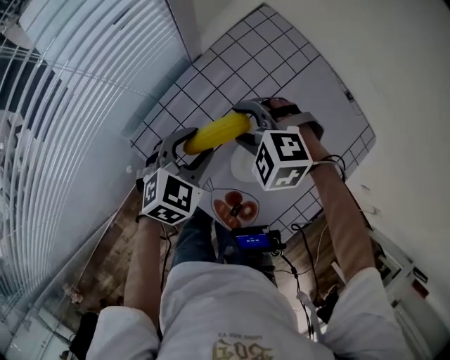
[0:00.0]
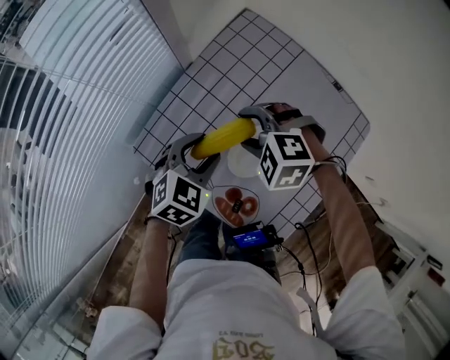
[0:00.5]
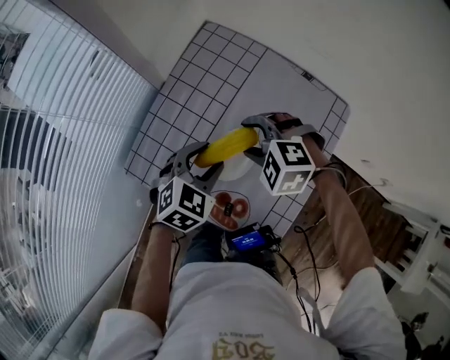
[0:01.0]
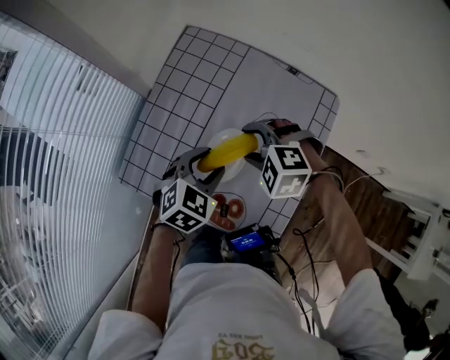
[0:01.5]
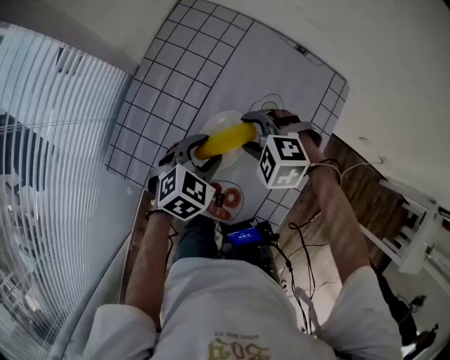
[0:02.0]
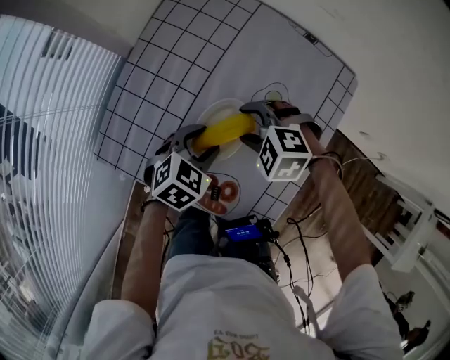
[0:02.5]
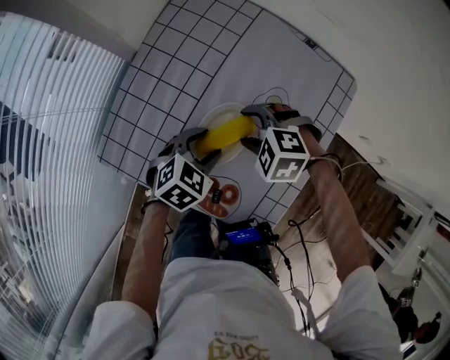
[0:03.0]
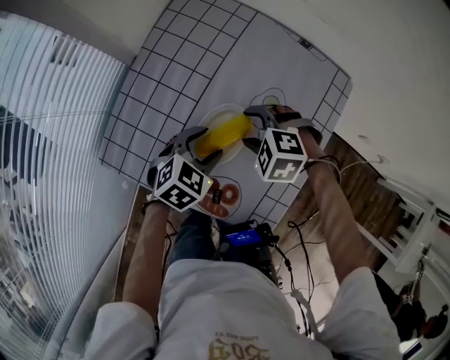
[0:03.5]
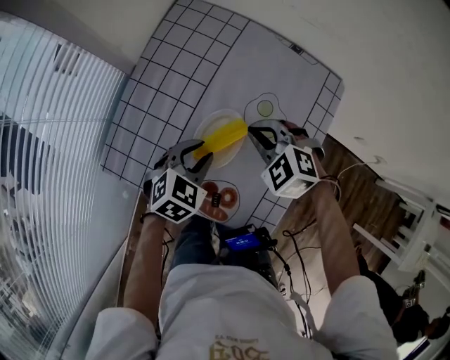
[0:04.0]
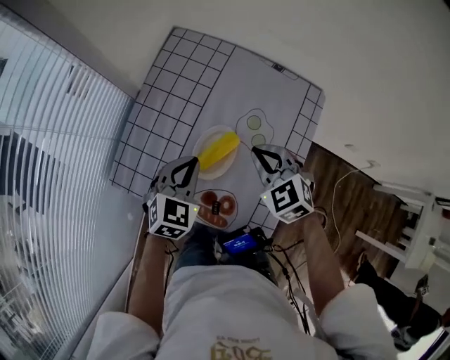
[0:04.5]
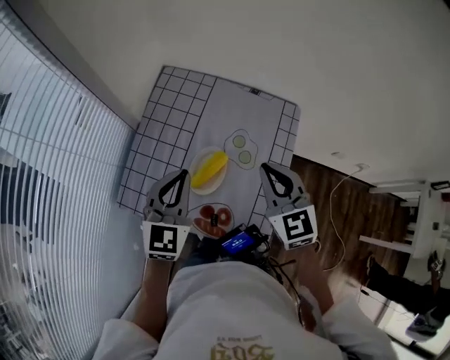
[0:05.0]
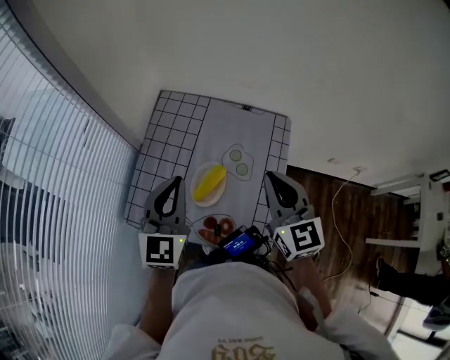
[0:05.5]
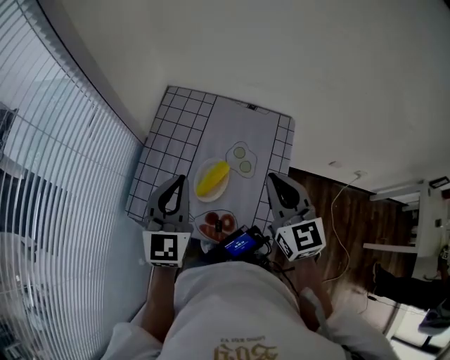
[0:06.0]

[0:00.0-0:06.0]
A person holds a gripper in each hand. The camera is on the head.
0:00.0 to 0:02.0: Both grippers move to the right and backward, roughly 15 cm. The left gripper swivels some 20 degrees; the right gripper rotates approximately 20 degrees.
0:02.0 to 0:04.0: The right gripper closes.
0:04.0 to 0:06.0: The two grippers go roughly 25 cm upward. The left gripper points its fingers about 40 degrees further upward, and closes its fingers; the right gripper tilts its fingers some 40 degrees upward.

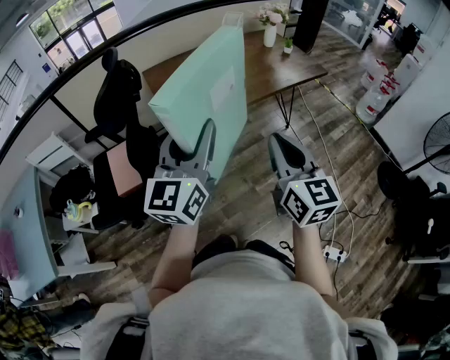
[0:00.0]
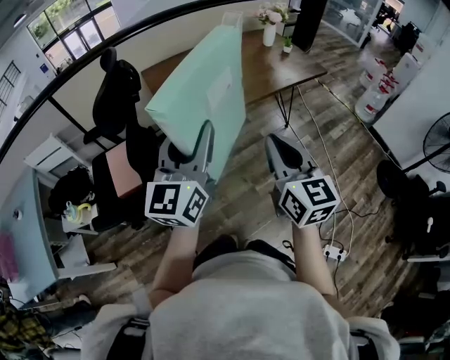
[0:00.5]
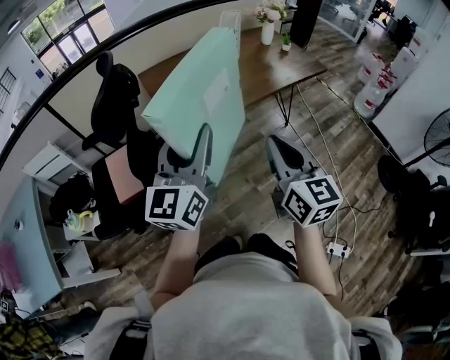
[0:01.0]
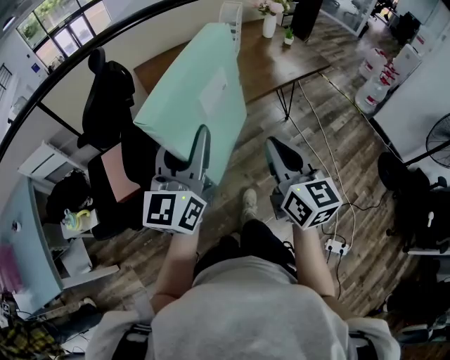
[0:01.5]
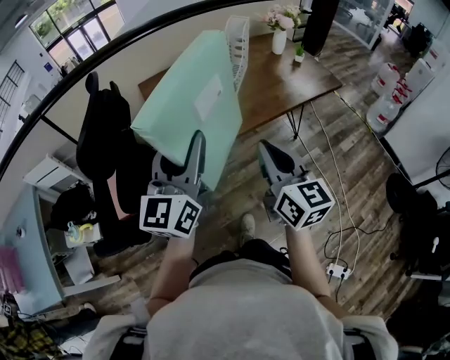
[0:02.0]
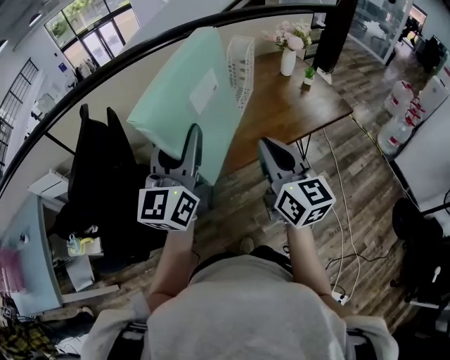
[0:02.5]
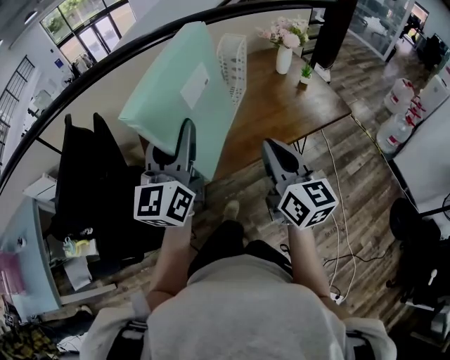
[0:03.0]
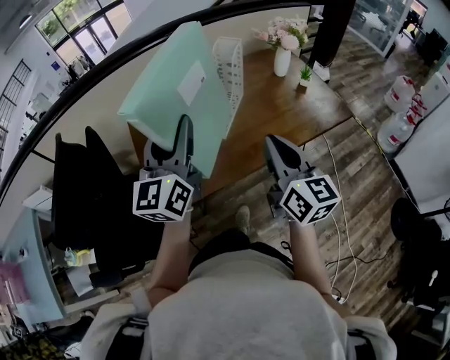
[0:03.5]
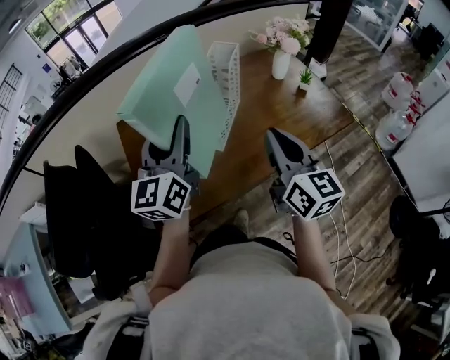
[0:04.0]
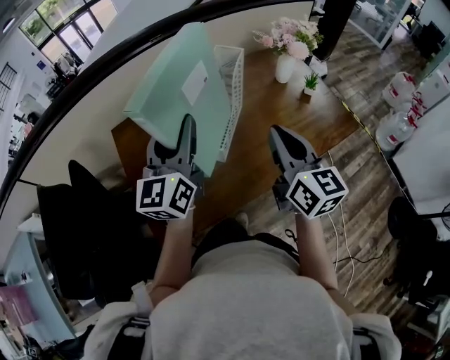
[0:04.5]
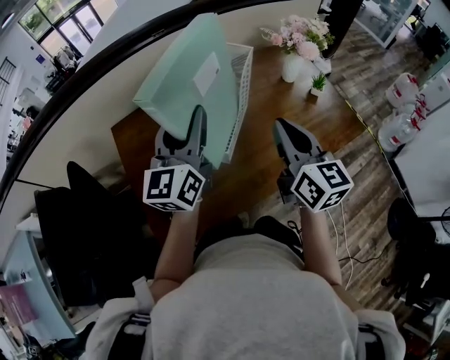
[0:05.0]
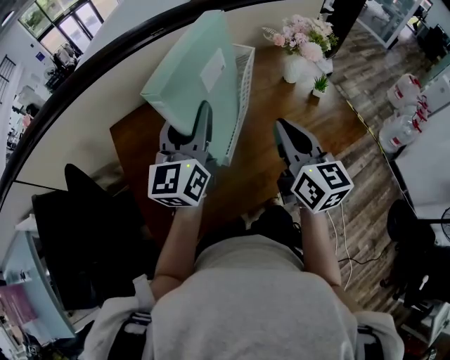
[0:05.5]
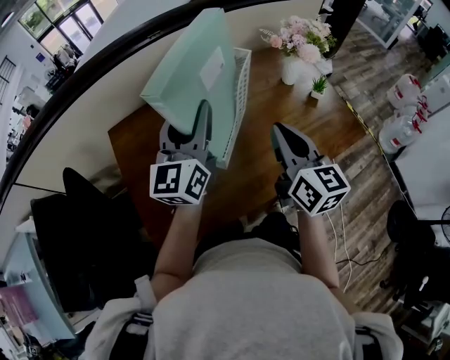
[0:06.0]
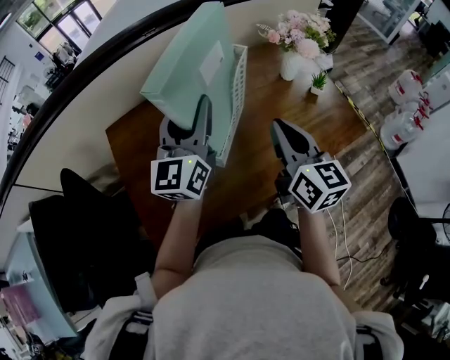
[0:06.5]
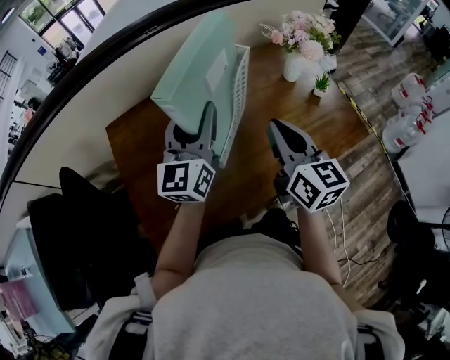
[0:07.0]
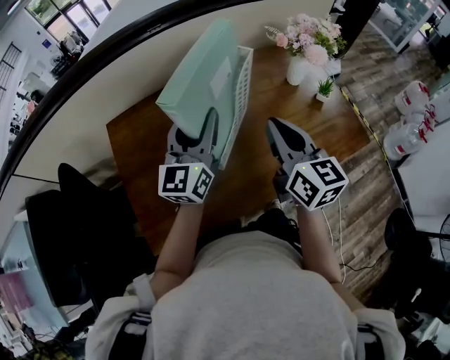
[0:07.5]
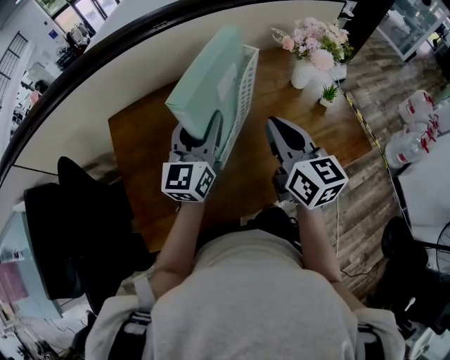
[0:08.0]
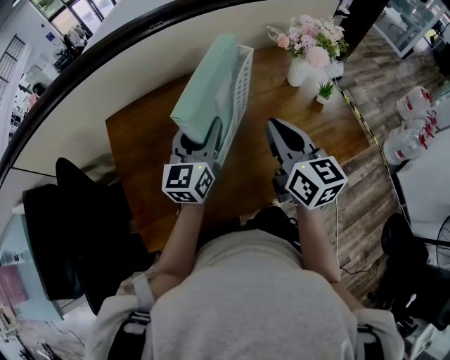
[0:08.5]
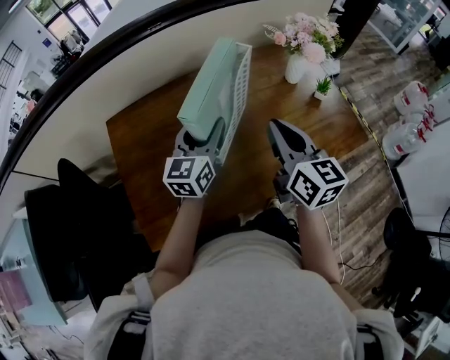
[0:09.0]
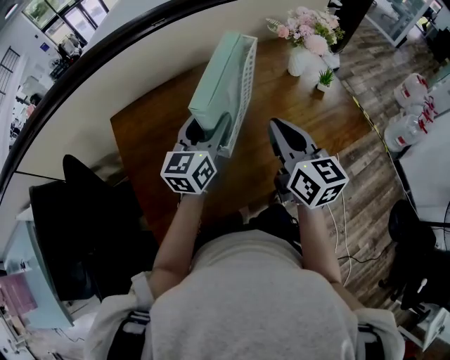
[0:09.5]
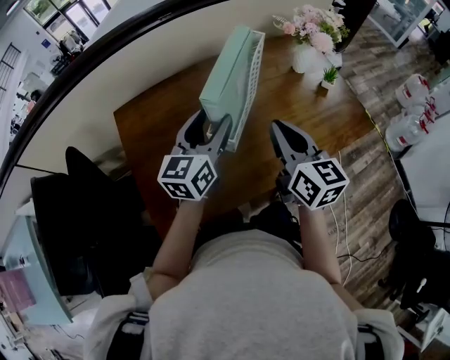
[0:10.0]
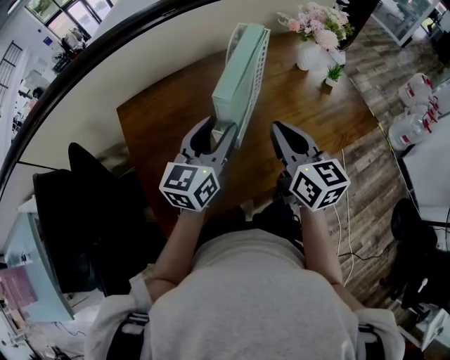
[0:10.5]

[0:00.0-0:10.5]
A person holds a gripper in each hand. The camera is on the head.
0:00.0 to 0:02.0: The grippers both shift forward by about 15 cm.
0:02.0 to 0:04.0: The left gripper is displaced forward by roughly 30 cm. The right gripper moves forward and to the right, roughly 30 cm.
0:04.0 to 0:06.5: Both grippers travel together forward, about 15 cm.
0:06.5 to 0:08.5: The left gripper shifts about 10 cm downward.
0:08.5 to 0:10.5: Both grippers travel together backward, roughly 5 cm.

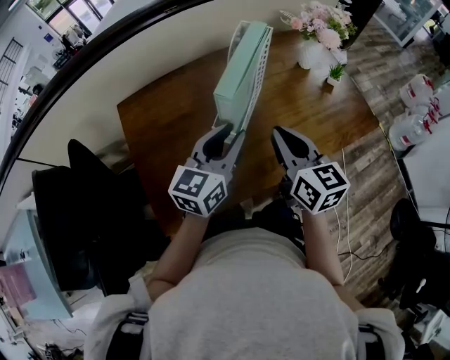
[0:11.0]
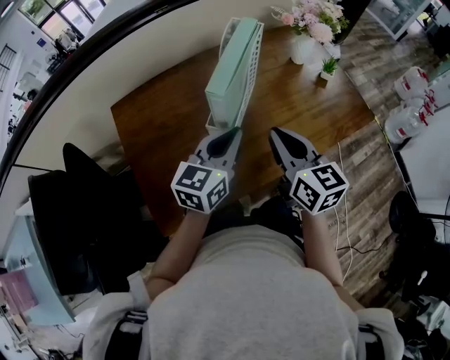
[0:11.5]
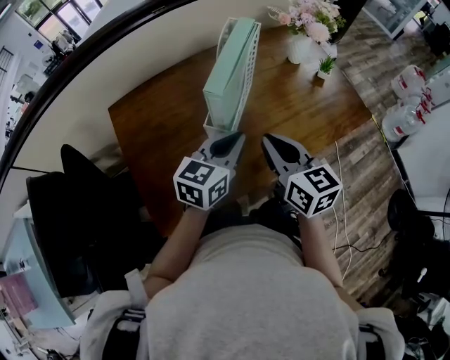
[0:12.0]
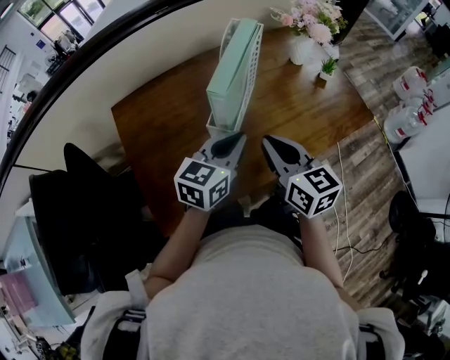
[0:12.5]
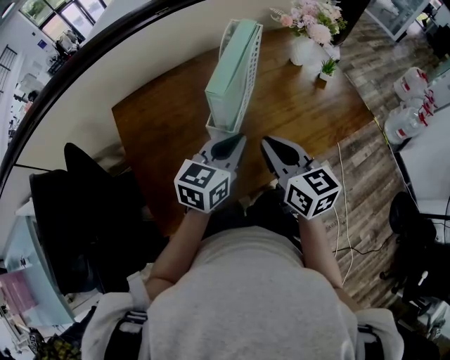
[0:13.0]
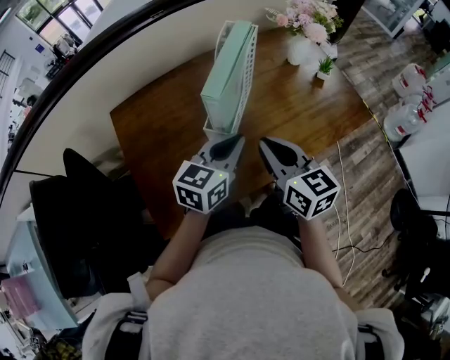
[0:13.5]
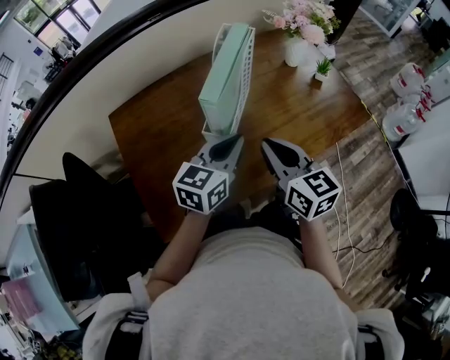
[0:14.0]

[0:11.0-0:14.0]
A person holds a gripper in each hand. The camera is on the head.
0:11.0 to 0:12.5: The left gripper closes its fingers.
0:12.5 to 0:14.0: Both grippers stay put.

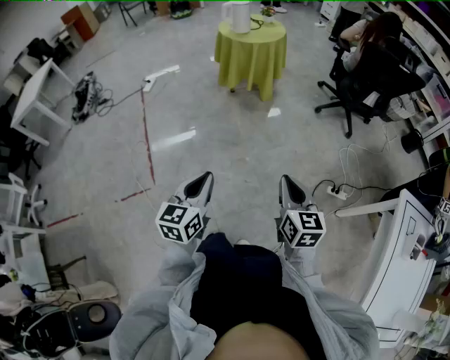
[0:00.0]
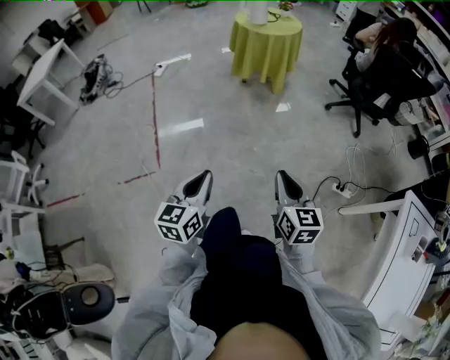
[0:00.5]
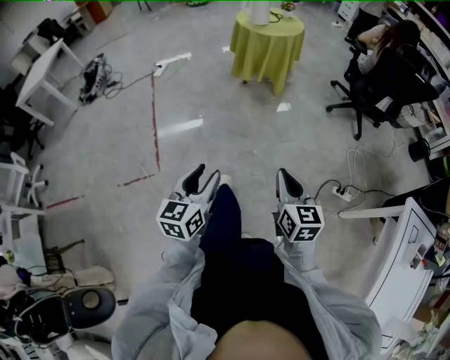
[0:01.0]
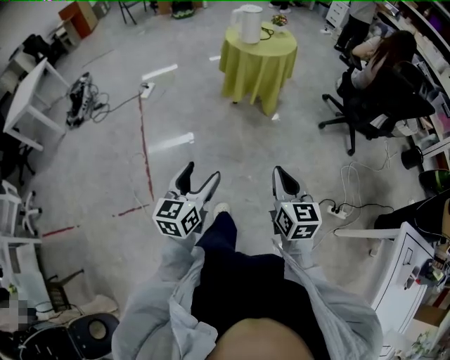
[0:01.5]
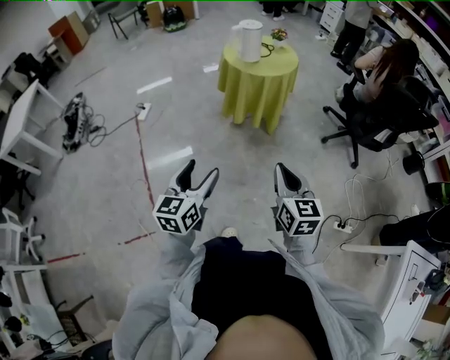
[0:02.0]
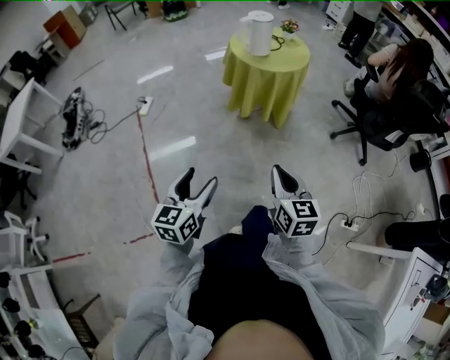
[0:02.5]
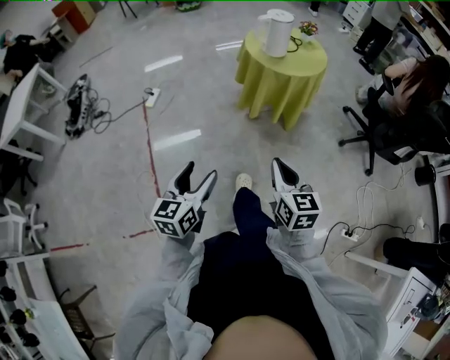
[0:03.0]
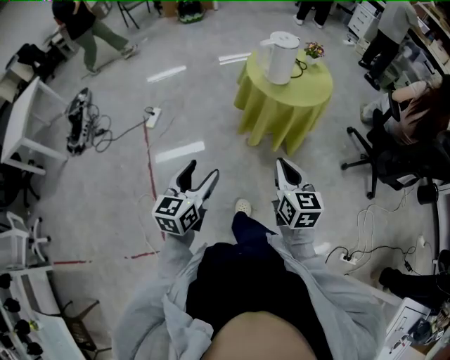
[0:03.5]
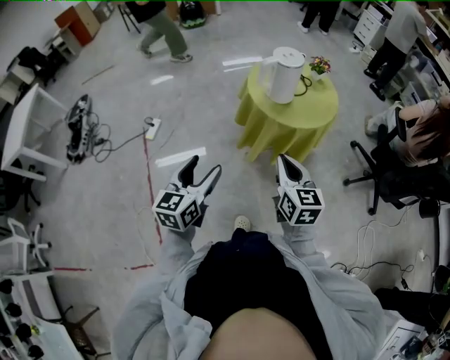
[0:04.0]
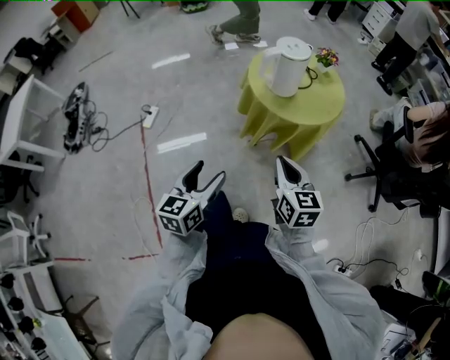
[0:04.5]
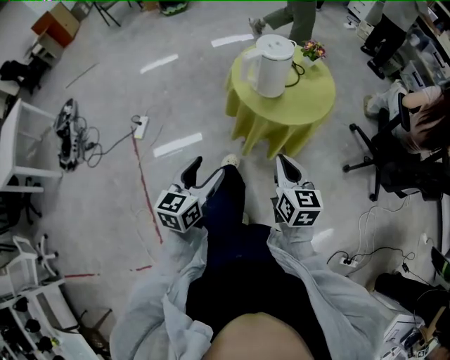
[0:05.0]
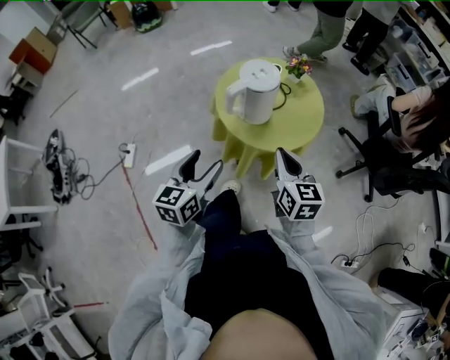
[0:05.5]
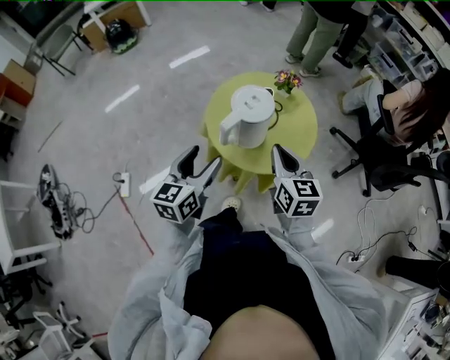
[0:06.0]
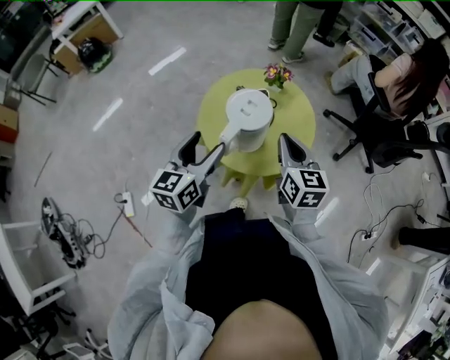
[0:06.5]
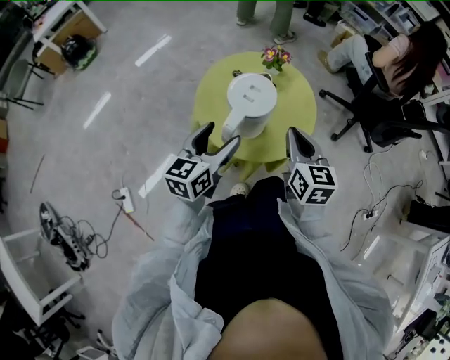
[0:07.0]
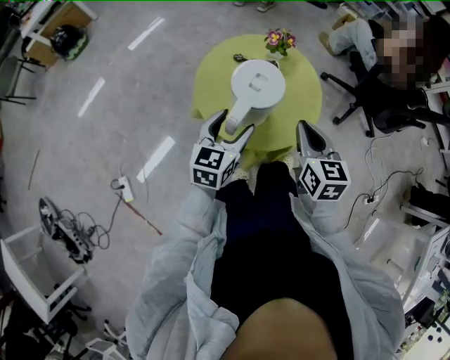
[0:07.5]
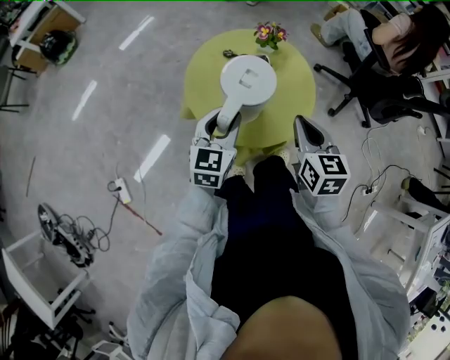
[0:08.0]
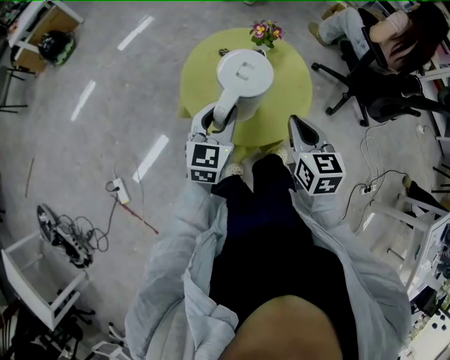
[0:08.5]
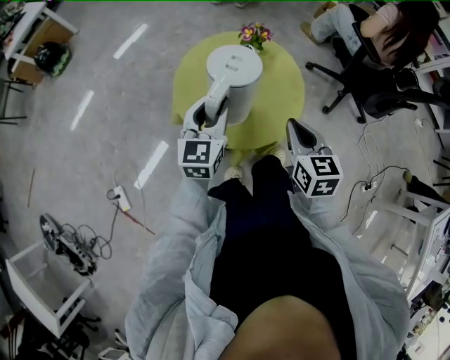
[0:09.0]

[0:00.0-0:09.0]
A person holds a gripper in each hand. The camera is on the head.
0:00.0 to 0:02.0: The two grippers go roughly 35 cm forward and to the left. The left gripper opens its fingers.
0:02.0 to 0:04.5: Both grippers travel together forward, about 40 cm.
0:04.5 to 0:07.0: The left gripper moves some 40 cm, and swivels approximately 40 degrees, while the right gripper changes place by approximately 30 cm, and changes its angle by about 40 degrees.
0:07.0 to 0:09.0: The left gripper is displaced forward by about 5 cm, and closes.
